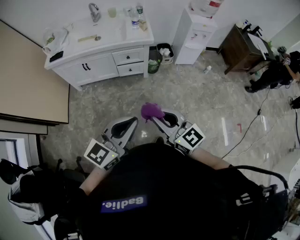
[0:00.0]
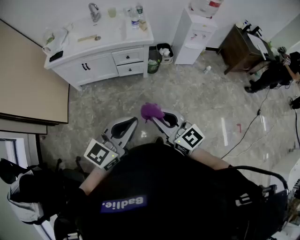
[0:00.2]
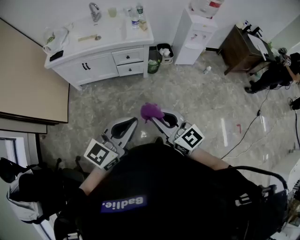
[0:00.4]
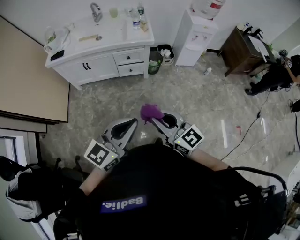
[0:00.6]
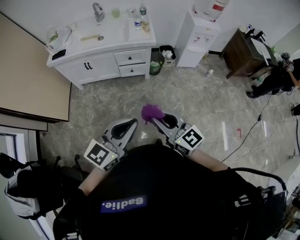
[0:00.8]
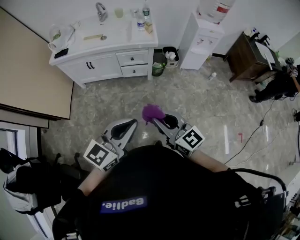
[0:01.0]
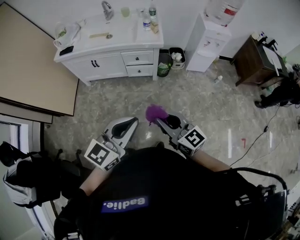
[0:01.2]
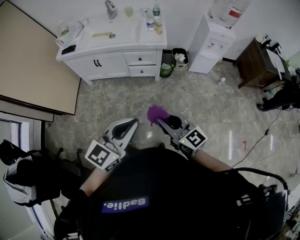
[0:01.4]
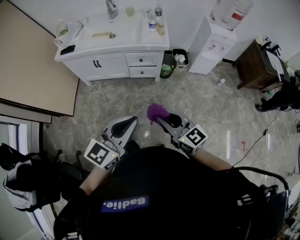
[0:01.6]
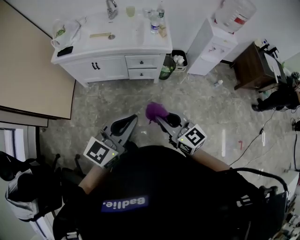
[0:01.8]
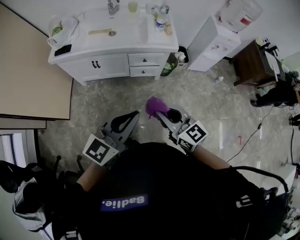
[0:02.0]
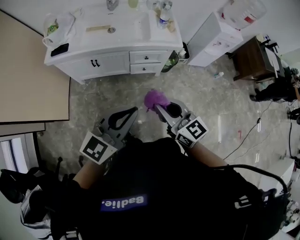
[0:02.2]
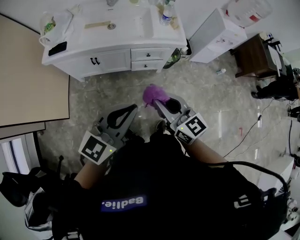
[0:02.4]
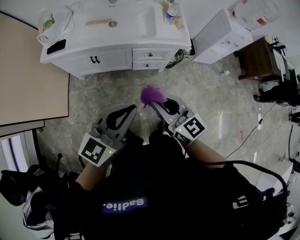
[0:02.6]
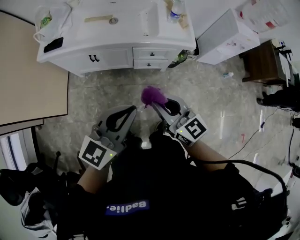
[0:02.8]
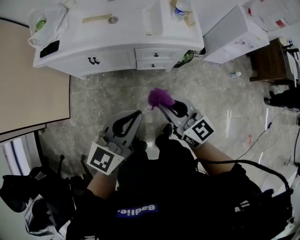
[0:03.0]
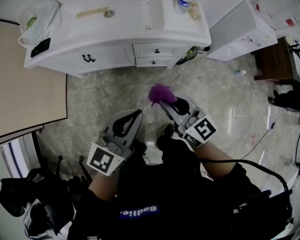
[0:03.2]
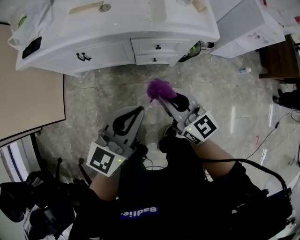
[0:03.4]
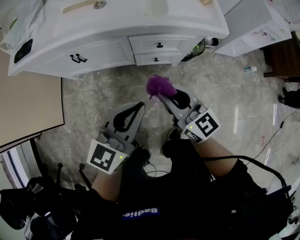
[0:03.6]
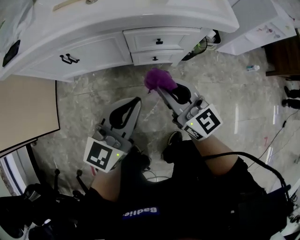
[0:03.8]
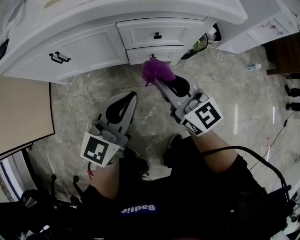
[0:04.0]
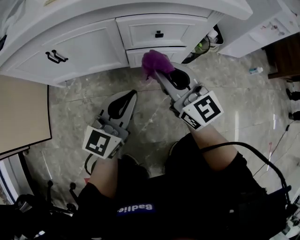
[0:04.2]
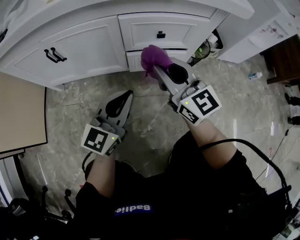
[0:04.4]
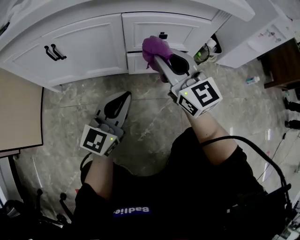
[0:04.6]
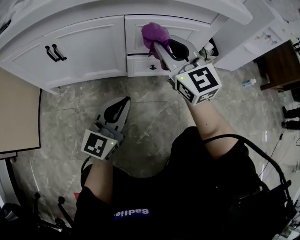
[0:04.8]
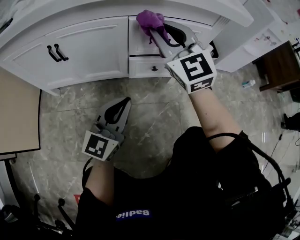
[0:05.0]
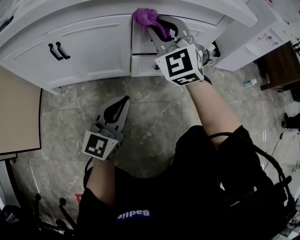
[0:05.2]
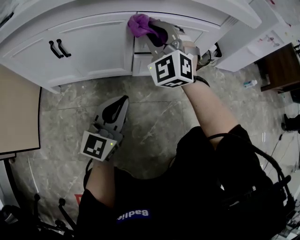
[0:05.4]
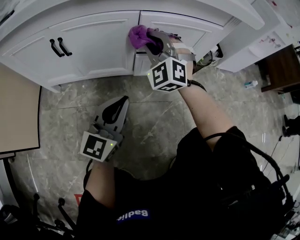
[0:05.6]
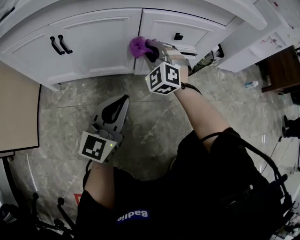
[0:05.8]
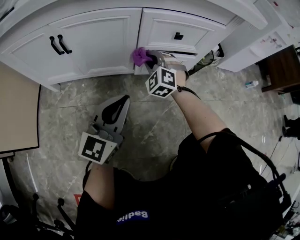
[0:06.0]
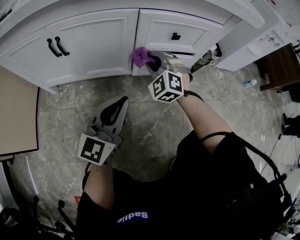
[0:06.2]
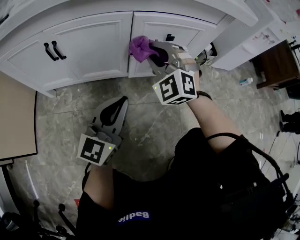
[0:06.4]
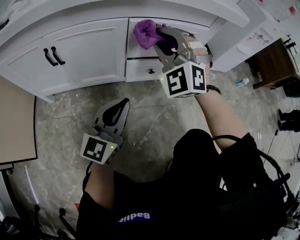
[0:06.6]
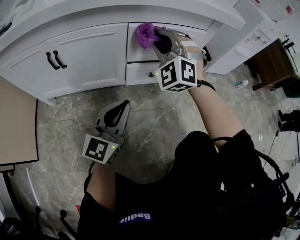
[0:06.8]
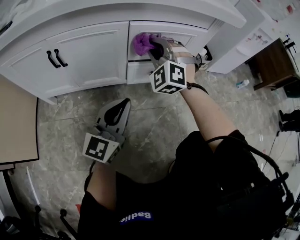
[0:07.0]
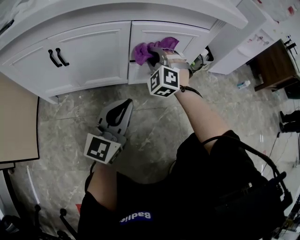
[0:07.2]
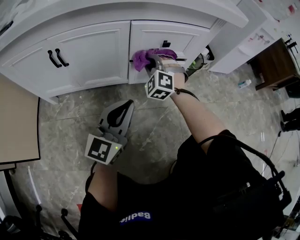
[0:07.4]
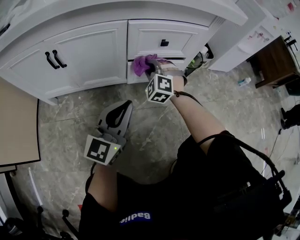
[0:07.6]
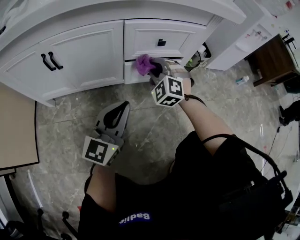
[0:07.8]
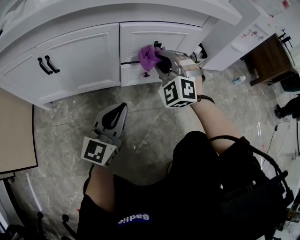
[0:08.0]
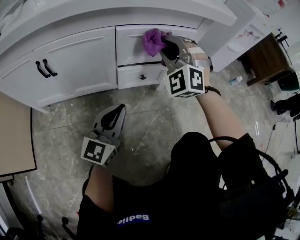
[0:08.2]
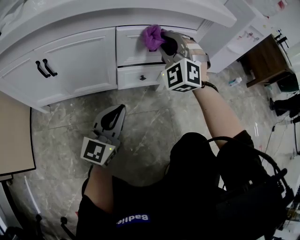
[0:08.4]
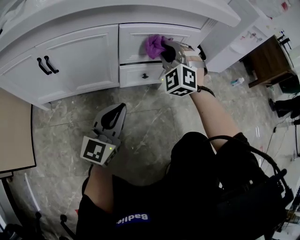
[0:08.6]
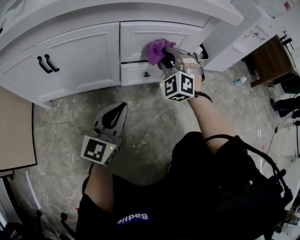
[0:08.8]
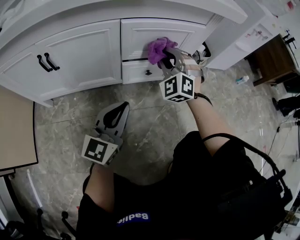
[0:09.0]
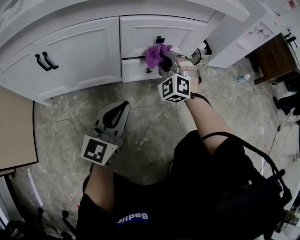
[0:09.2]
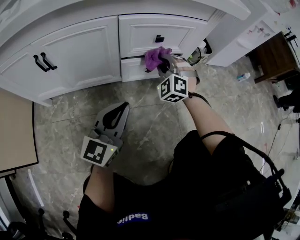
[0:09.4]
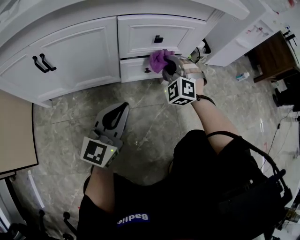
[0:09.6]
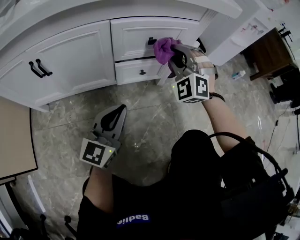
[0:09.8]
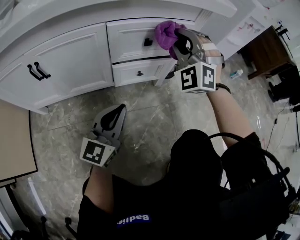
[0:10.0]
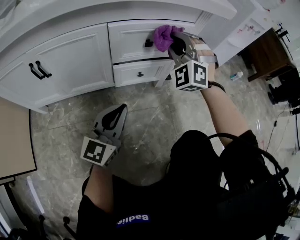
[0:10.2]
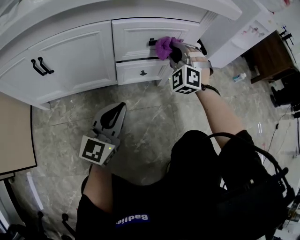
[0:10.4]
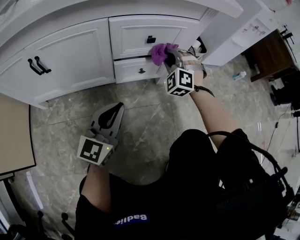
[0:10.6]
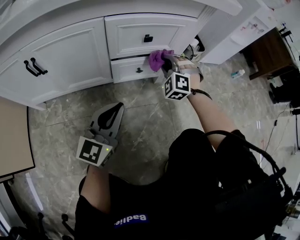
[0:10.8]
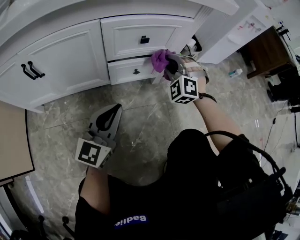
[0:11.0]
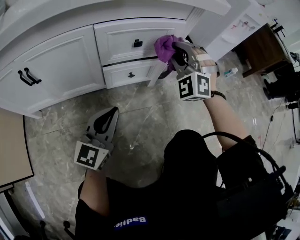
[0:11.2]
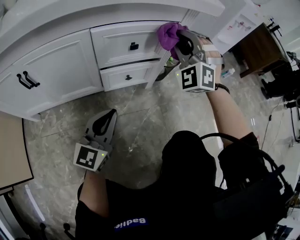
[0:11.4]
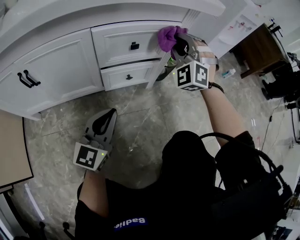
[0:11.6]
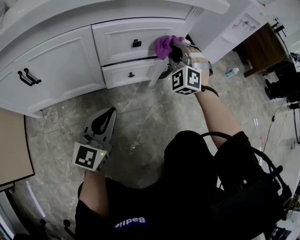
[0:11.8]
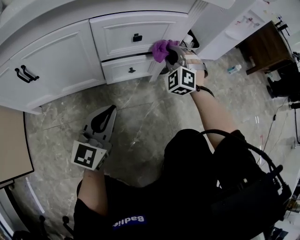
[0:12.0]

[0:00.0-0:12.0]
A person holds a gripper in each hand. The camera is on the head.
0:00.0 to 0:01.6: The two grippers go roughly 5 cm forward.
0:01.6 to 0:03.0: The left gripper is displaced forward, downward and to the left by about 35 cm, while the right gripper is displaced forward, to the left and downward by approximately 35 cm.
0:03.0 to 0:04.4: The right gripper goes some 35 cm downward and forward, while the left gripper travels downward by roughly 40 cm.
0:04.4 to 0:06.0: The left gripper shifts approximately 5 cm to the left, while the right gripper shifts some 25 cm downward, forward and to the left, and rolls counterclockwise, seen from behind, by about 50 degrees.
0:06.0 to 0:07.6: The right gripper moves roughly 25 cm upward and comes back.
0:07.6 to 0:09.0: The right gripper goes some 10 cm upward and to the right.
0:09.0 to 0:10.4: The right gripper moves up and down over about 20 cm, changing direction 2 times.
0:10.4 to 0:12.0: The right gripper moves up and down over roughly 20 cm, changing direction 2 times.

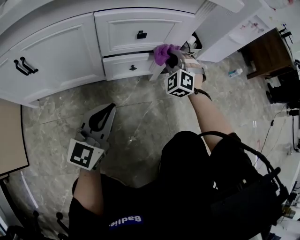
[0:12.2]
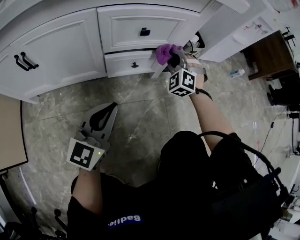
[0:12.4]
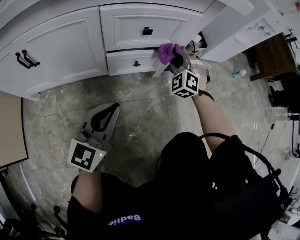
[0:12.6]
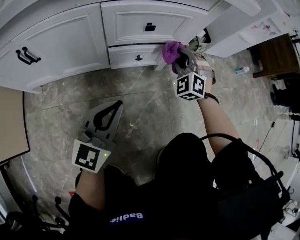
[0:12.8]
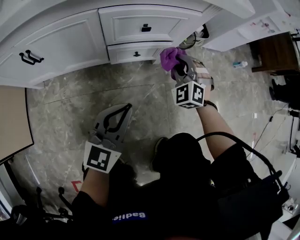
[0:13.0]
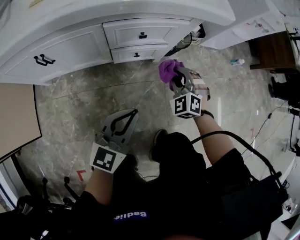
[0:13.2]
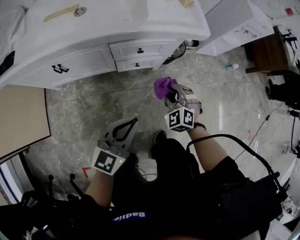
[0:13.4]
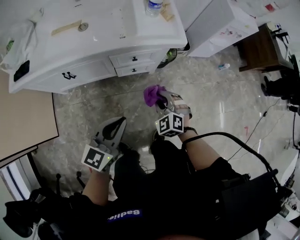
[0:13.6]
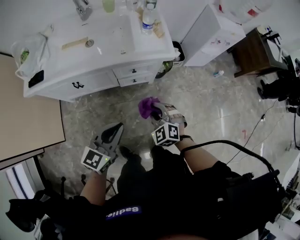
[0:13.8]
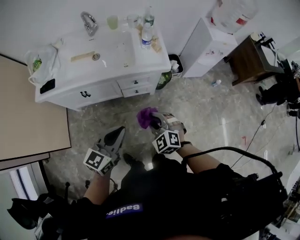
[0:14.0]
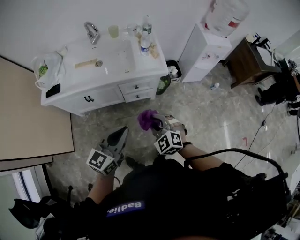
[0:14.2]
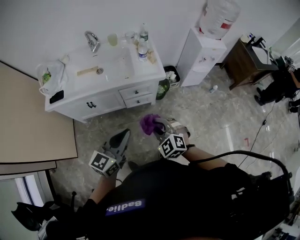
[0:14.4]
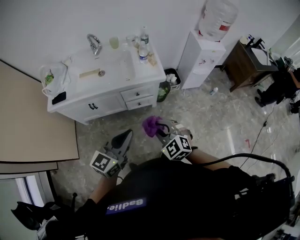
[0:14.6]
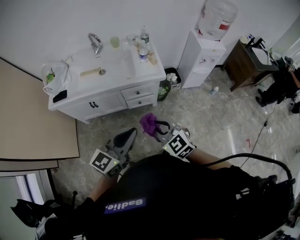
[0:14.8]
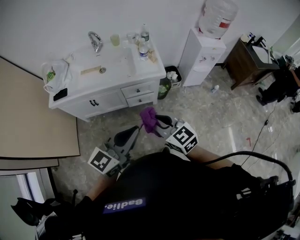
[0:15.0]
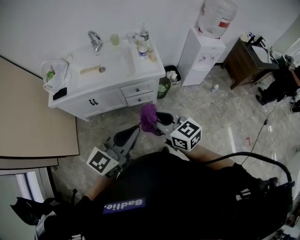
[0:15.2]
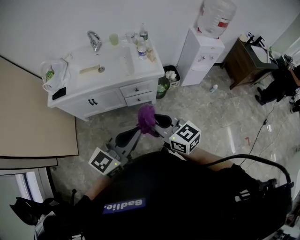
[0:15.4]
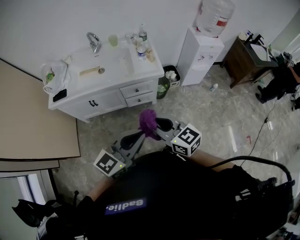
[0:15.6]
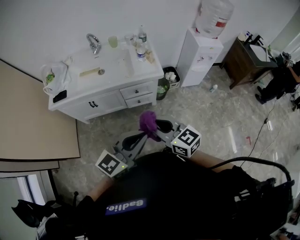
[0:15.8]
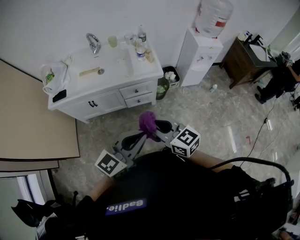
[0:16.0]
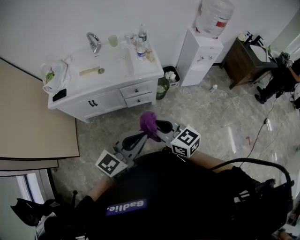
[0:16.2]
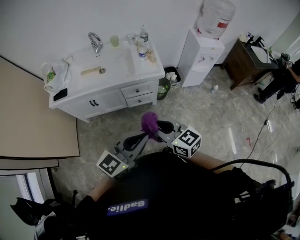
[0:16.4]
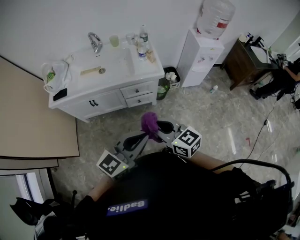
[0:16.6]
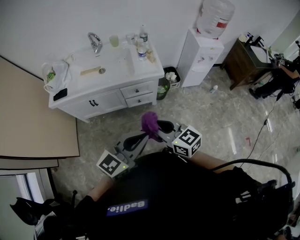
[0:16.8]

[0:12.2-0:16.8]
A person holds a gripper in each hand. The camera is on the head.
0:12.2 to 0:13.8: The right gripper heads upward and backward, covering approximately 50 cm, and changes its angle by approximately 30 degrees. Meanwhile the left gripper goes about 40 cm upward.
0:13.8 to 0:15.2: The right gripper travels upward by about 30 cm, and turns by some 50 degrees; the left gripper is displaced upward and backward by approximately 25 cm.
0:15.2 to 0:16.8: The left gripper changes place by about 5 cm.

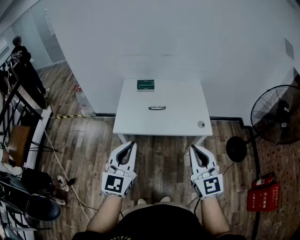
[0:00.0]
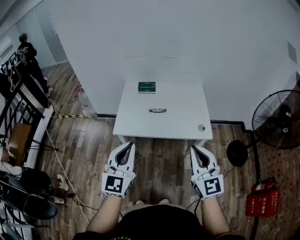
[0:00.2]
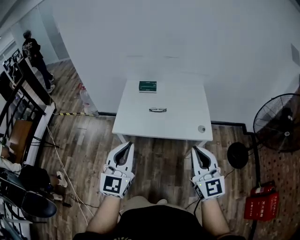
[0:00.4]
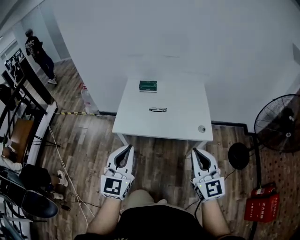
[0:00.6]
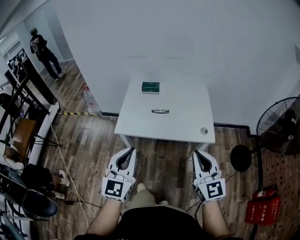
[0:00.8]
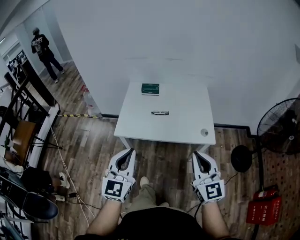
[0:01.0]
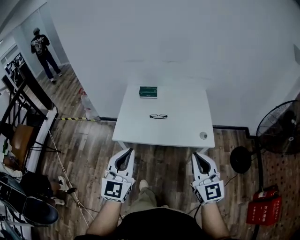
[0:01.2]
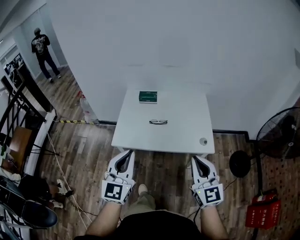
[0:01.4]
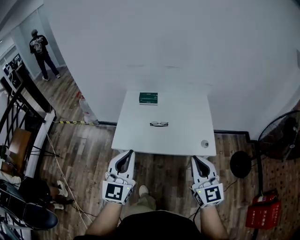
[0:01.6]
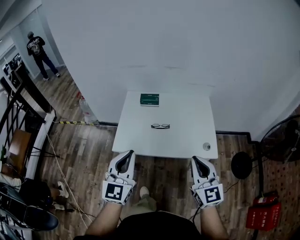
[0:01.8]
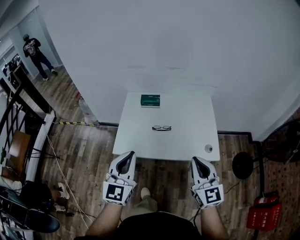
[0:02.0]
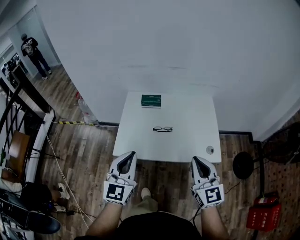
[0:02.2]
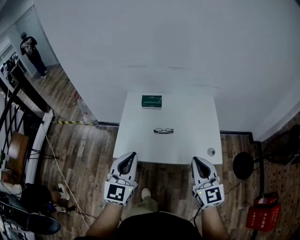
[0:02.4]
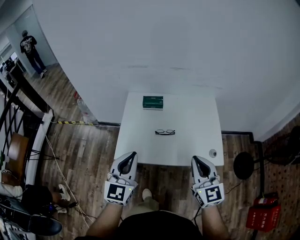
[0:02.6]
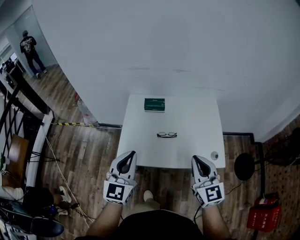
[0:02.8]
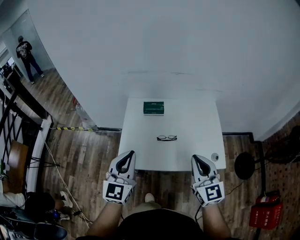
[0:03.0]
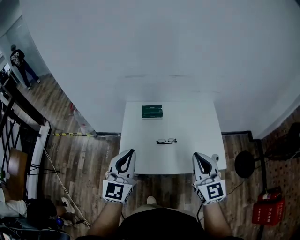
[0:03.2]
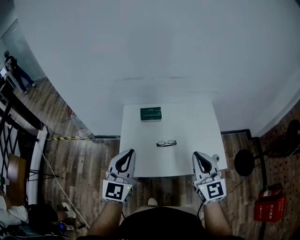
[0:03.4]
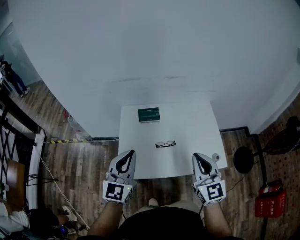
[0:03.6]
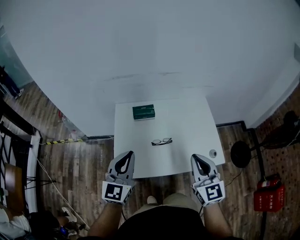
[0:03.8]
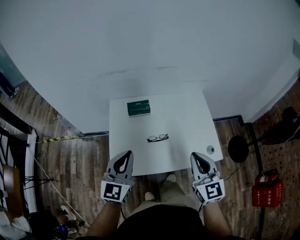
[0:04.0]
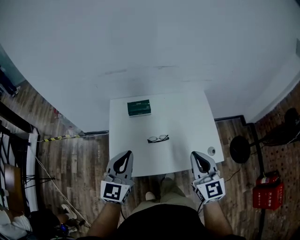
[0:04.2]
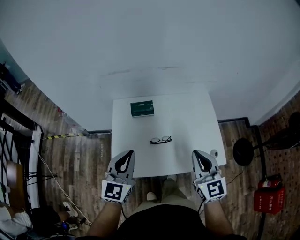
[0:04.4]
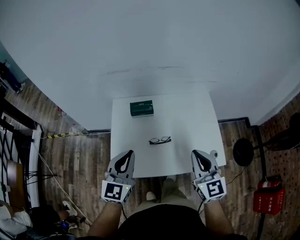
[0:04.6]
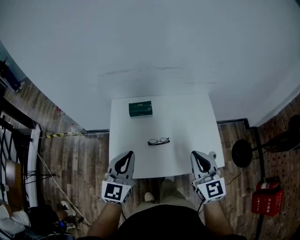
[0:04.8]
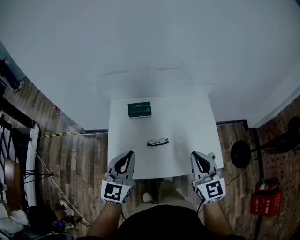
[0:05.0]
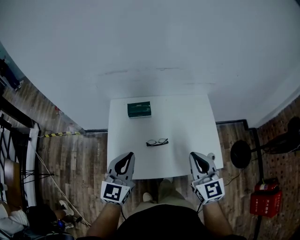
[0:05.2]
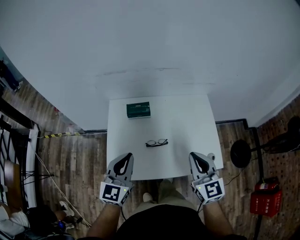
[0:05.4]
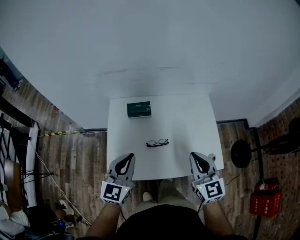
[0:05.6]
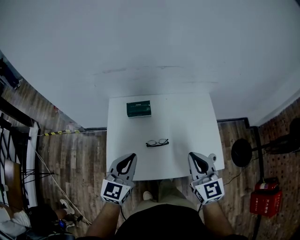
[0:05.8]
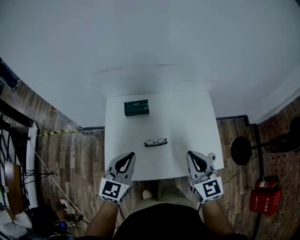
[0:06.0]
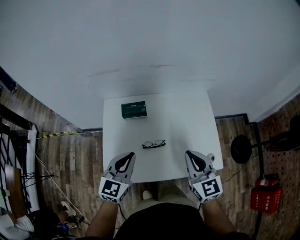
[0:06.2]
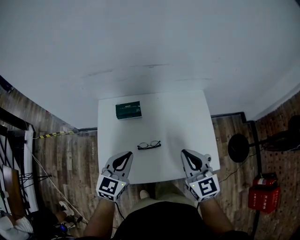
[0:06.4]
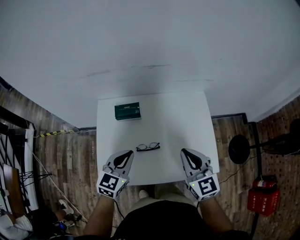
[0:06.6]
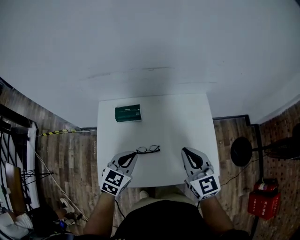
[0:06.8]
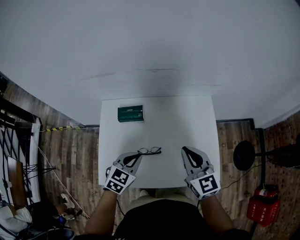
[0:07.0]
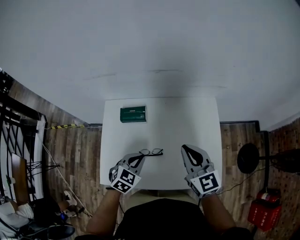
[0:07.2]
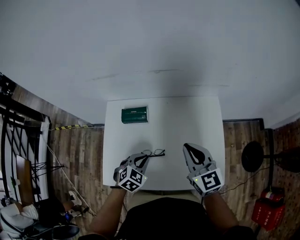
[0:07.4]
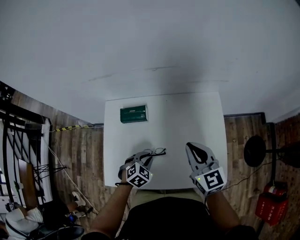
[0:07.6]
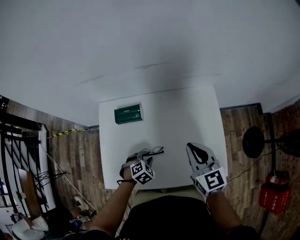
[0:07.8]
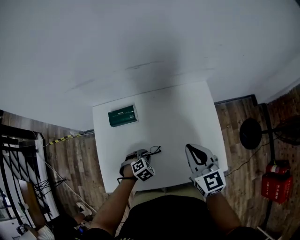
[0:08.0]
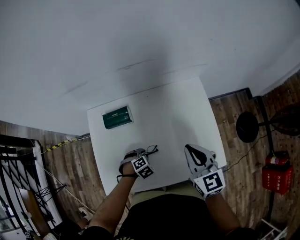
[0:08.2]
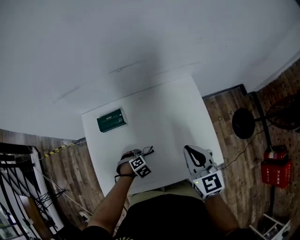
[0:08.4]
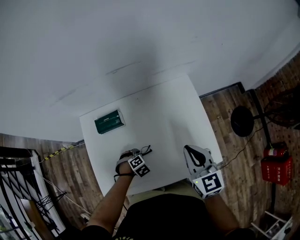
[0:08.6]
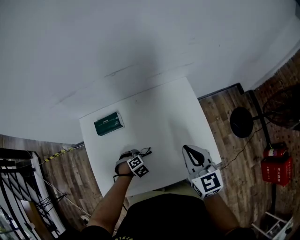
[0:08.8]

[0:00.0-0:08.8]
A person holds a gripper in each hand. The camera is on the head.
0:00.0 to 0:01.4: The two grippers go roughly 5 cm forward.
0:01.4 to 0:03.0: Both grippers move forward, about 20 cm.
0:03.0 to 0:04.4: Both grippers travel together forward, about 10 cm.
0:04.4 to 0:05.8: The left gripper ends up about 5 cm from where it was.
0:05.8 to 0:07.4: The right gripper goes approximately 15 cm forward. The left gripper goes roughly 25 cm downward, forward and to the right, and tips its fingers downward by some 40 degrees.
0:07.4 to 0:08.8: The right gripper moves approximately 10 cm, and swivels roughly 20 degrees; the left gripper heads downward, covering about 15 cm, and swivels about 40 degrees.
